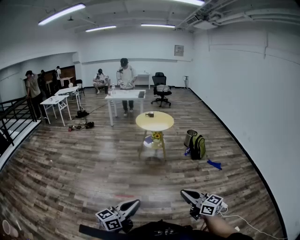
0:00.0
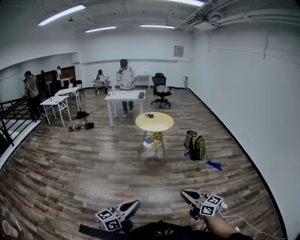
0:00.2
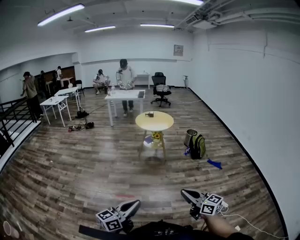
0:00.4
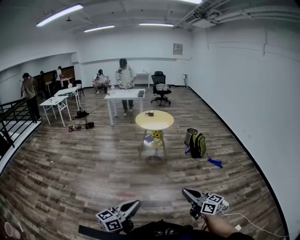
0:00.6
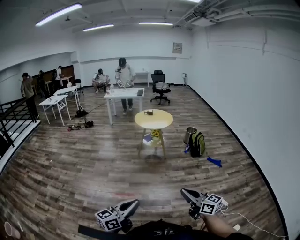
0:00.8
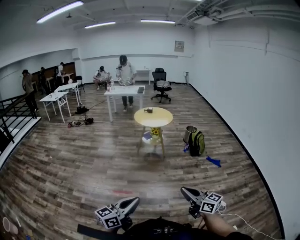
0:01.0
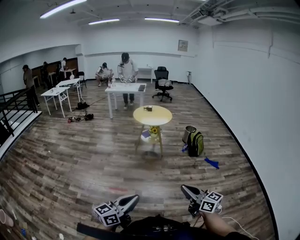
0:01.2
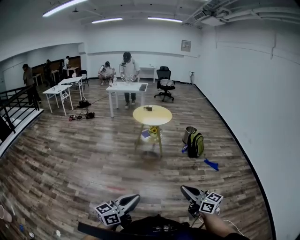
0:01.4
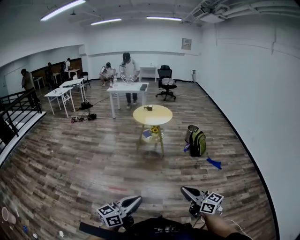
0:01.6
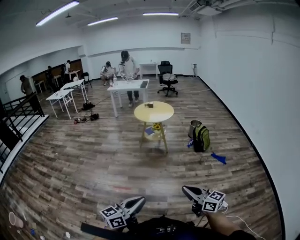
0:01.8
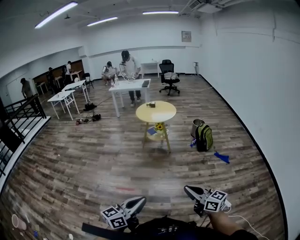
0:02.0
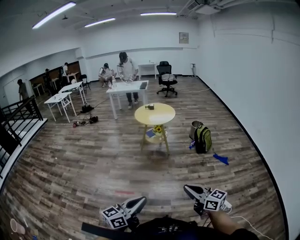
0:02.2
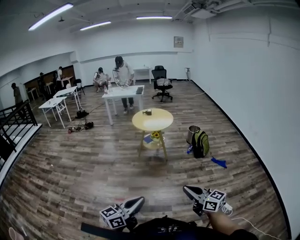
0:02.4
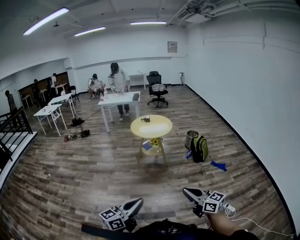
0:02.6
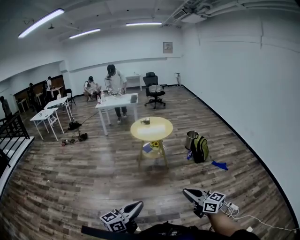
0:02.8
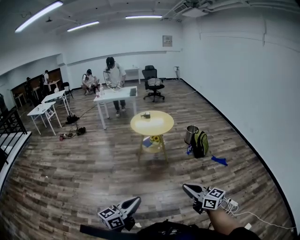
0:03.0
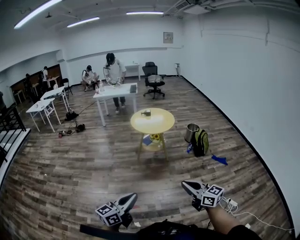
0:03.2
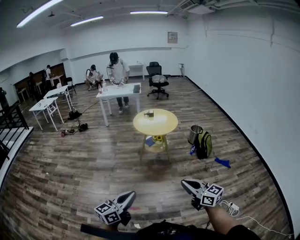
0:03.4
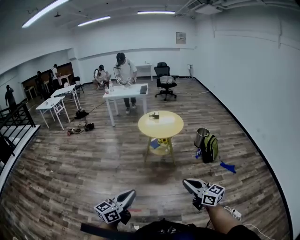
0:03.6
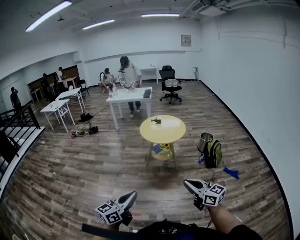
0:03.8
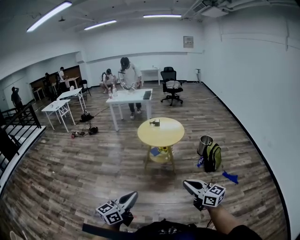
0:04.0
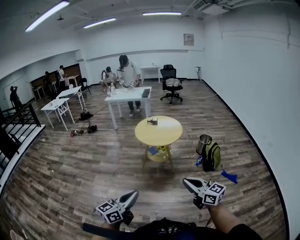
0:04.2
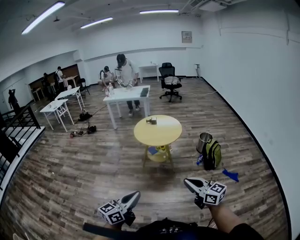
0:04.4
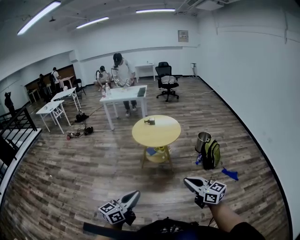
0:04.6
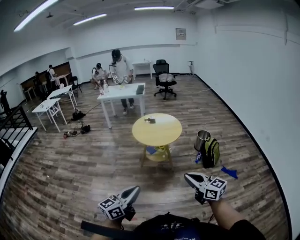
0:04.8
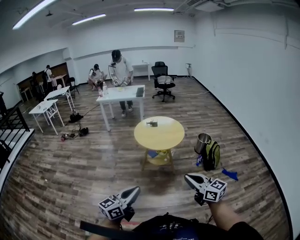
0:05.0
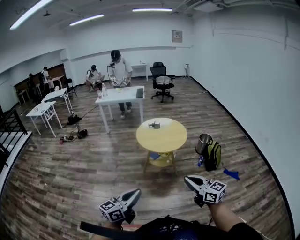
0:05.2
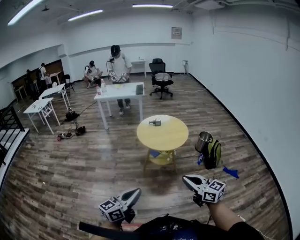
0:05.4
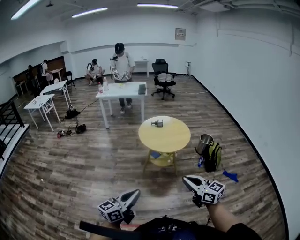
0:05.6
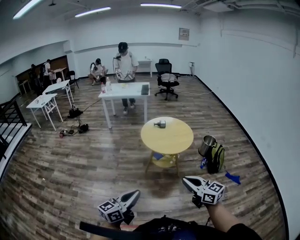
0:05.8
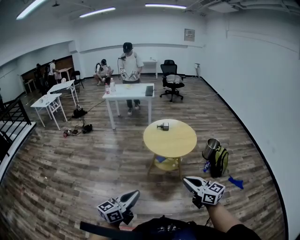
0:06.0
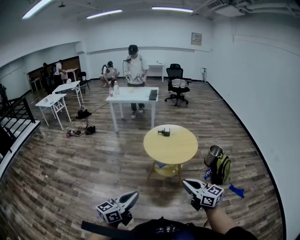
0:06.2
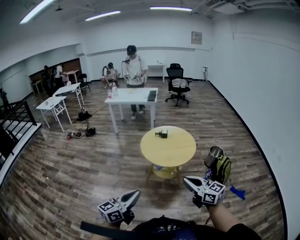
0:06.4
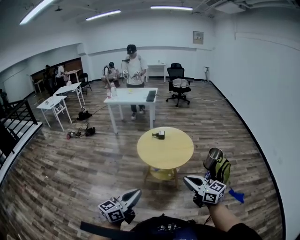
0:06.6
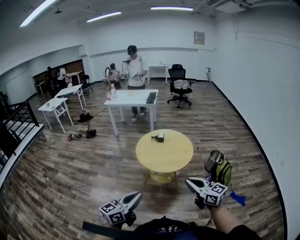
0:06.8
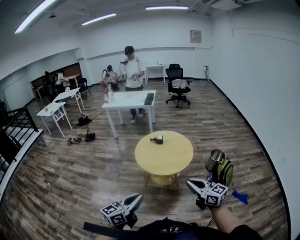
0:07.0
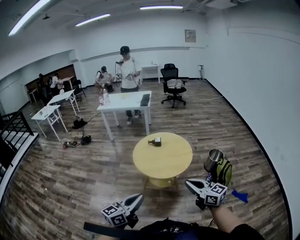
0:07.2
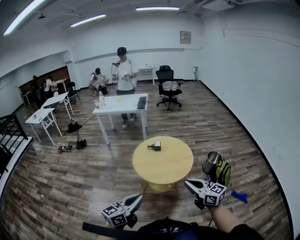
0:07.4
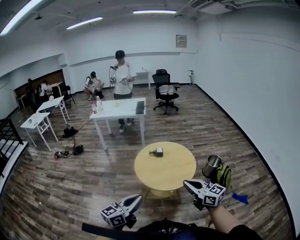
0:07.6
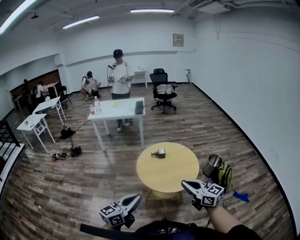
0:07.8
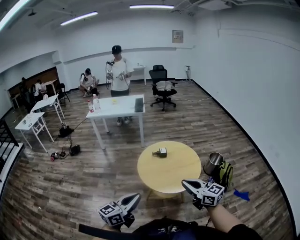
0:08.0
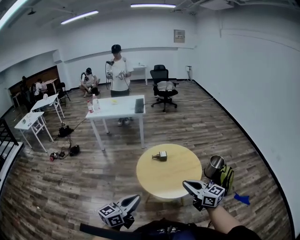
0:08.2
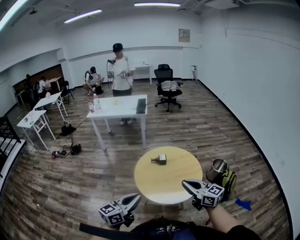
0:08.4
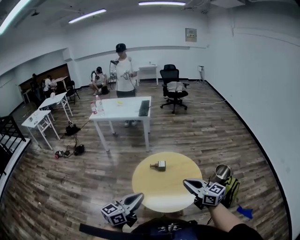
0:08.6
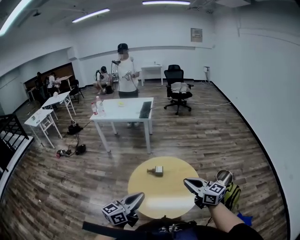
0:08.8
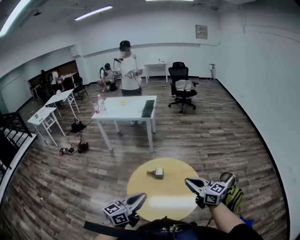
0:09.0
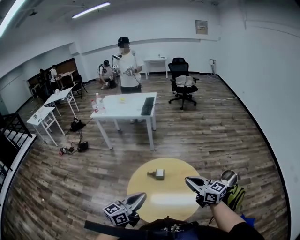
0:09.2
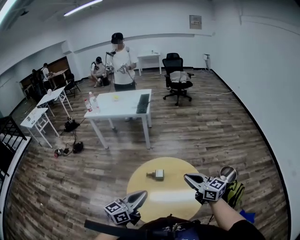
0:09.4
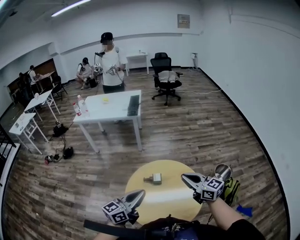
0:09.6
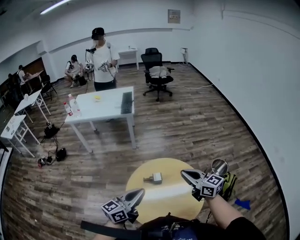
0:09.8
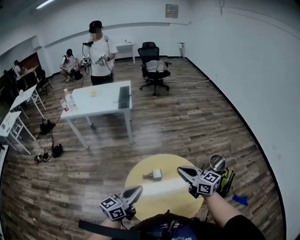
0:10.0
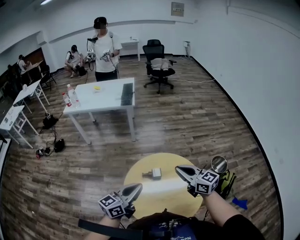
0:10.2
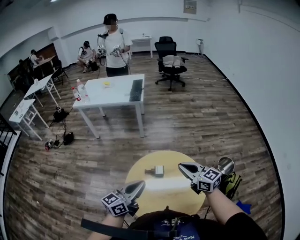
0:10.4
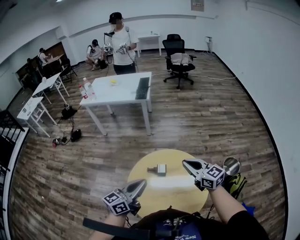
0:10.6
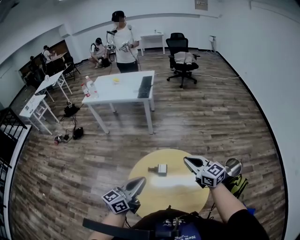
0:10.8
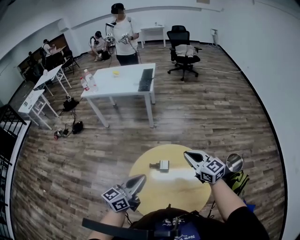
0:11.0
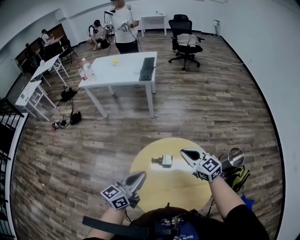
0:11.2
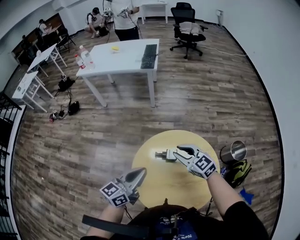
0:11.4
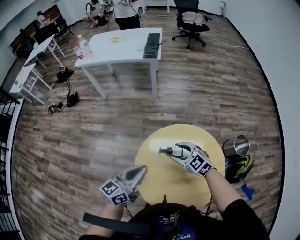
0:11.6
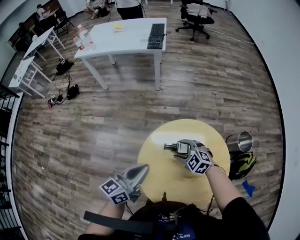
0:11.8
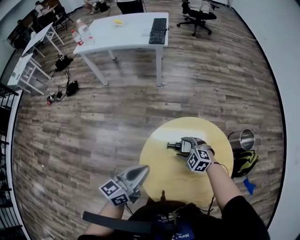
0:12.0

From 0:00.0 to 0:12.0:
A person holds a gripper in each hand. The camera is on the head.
From 0:00.0 to 0:01.6: Both grippers travel together to the right, approximately 20 cm.
From 0:01.6 to 0:03.0: The grippers both shift forward and to the left by some 40 cm.
From 0:03.0 to 0:04.4: Both grippers travel together forward and to the right, about 35 cm.
From 0:04.4 to 0:06.0: Both grippers travel together forward and to the left, about 40 cm.
From 0:06.0 to 0:07.6: The two grippers go roughly 35 cm forward.
From 0:07.6 to 0:09.0: The pair of grippers is taken forward, some 50 cm.
From 0:09.0 to 0:10.4: The right gripper is displaced forward and to the left by roughly 25 cm, while the left gripper goes about 20 cm forward.
From 0:10.4 to 0:12.0: The right gripper travels downward, forward and to the left by about 40 cm, angles its fingers downward, by about 50 degrees, and opens up. The left gripper is displaced downward, forward and to the left by approximately 25 cm.

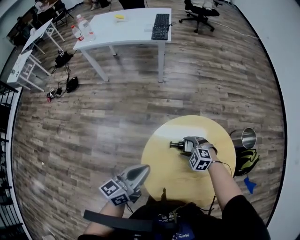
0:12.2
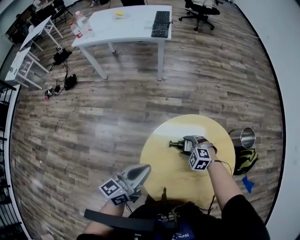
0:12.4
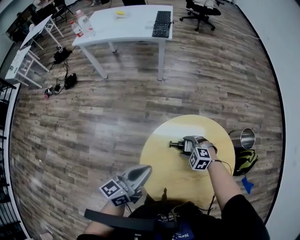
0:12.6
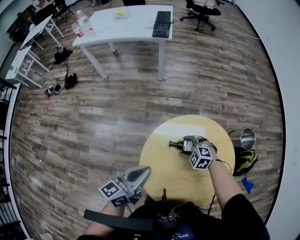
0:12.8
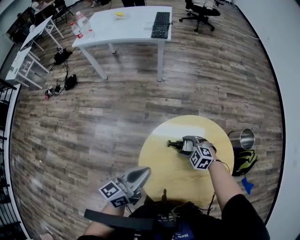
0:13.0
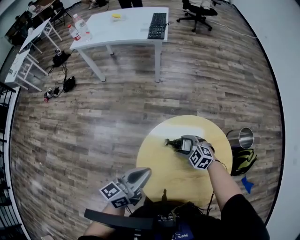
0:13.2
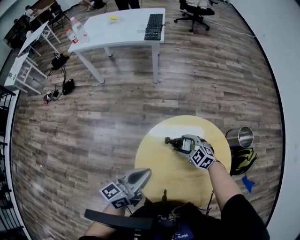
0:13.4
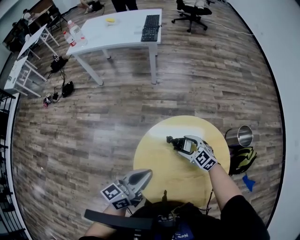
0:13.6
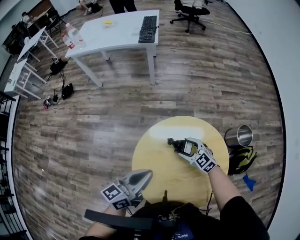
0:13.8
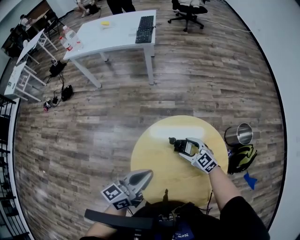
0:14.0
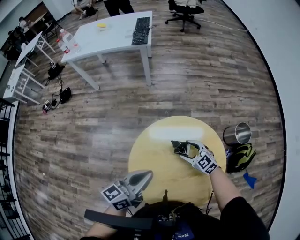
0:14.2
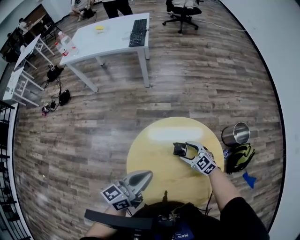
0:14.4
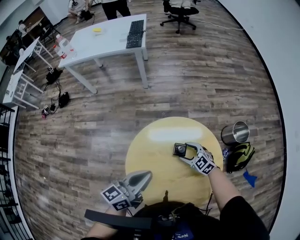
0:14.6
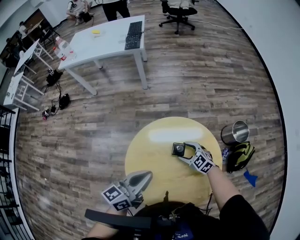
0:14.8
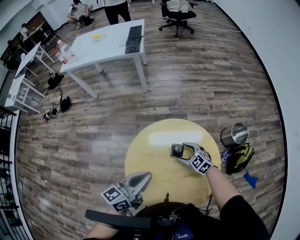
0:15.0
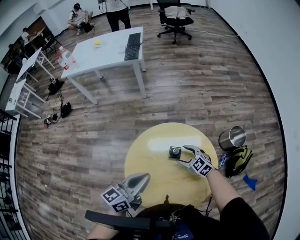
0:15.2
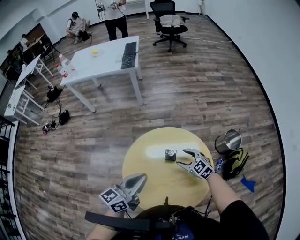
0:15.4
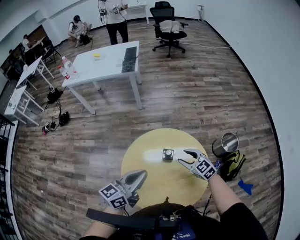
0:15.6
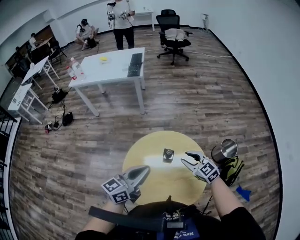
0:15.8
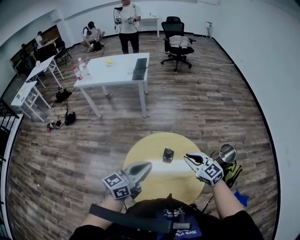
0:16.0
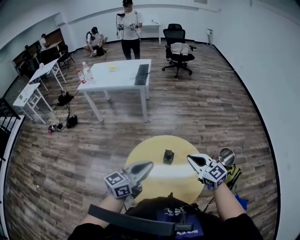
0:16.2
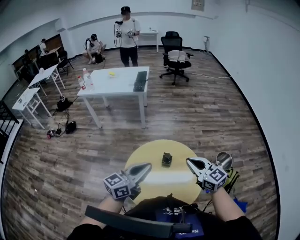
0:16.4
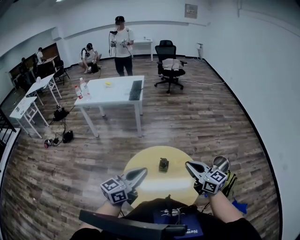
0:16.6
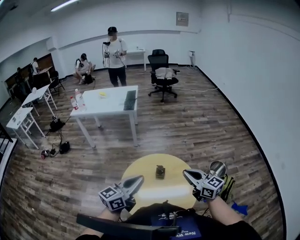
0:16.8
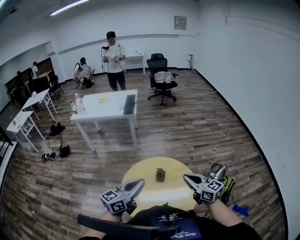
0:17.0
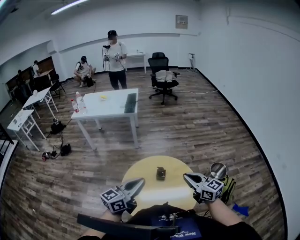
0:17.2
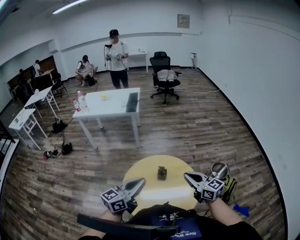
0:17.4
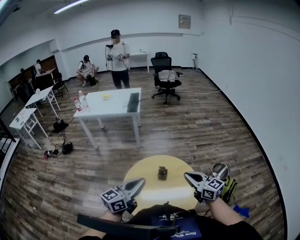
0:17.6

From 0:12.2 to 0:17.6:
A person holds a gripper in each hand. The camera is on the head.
From 0:12.2 to 0:13.6: The left gripper is displaced to the right by approximately 5 cm, while the right gripper ends up roughly 5 cm from where it was, and rotates about 30 degrees.
From 0:13.6 to 0:15.0: The grippers both shift to the right by approximately 10 cm.
From 0:15.0 to 0:16.2: The right gripper goes about 40 cm upward and backward, changes its angle by approximately 30 degrees, and closes its fingers. The left gripper shifts roughly 20 cm upward and backward.
From 0:16.2 to 0:17.6: Both grippers move backward, roughly 10 cm.

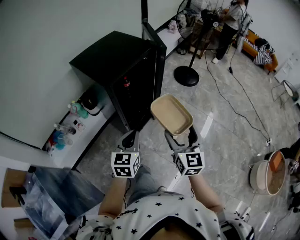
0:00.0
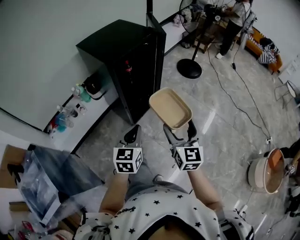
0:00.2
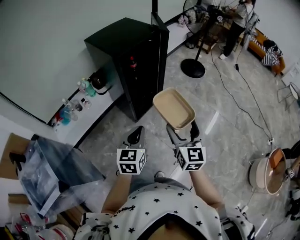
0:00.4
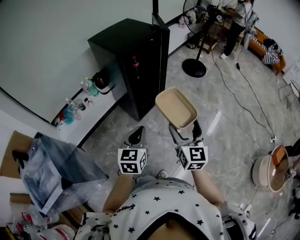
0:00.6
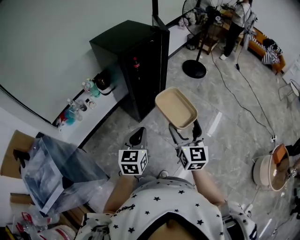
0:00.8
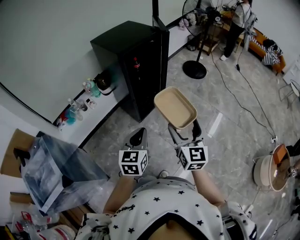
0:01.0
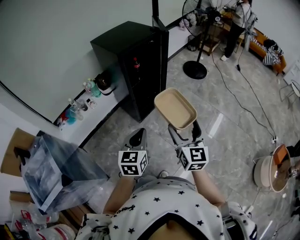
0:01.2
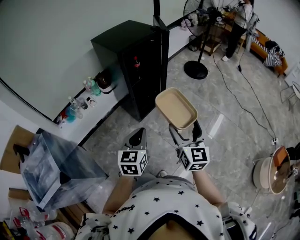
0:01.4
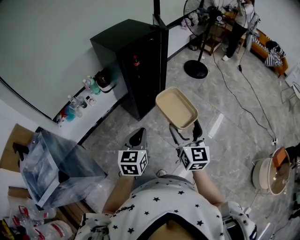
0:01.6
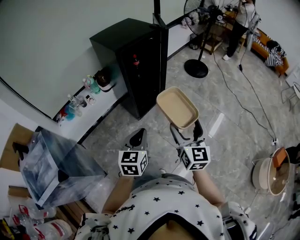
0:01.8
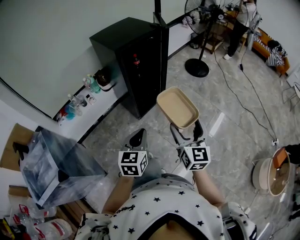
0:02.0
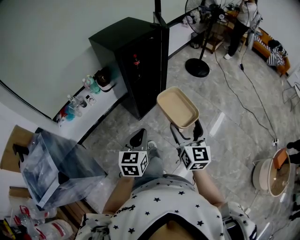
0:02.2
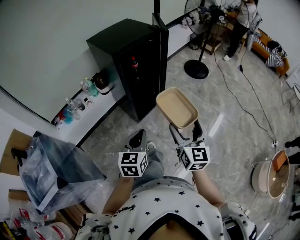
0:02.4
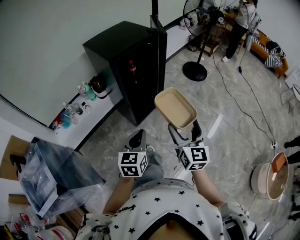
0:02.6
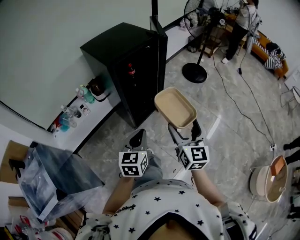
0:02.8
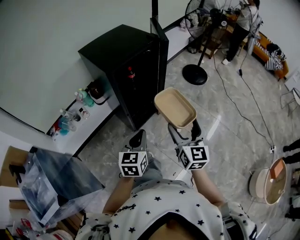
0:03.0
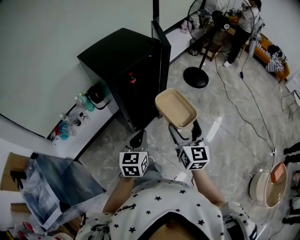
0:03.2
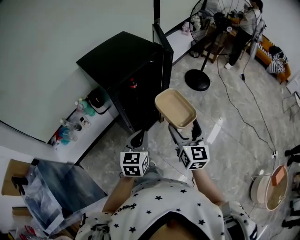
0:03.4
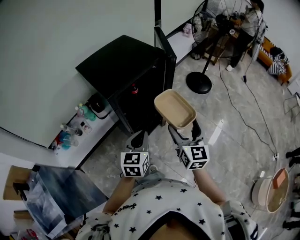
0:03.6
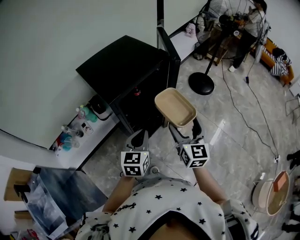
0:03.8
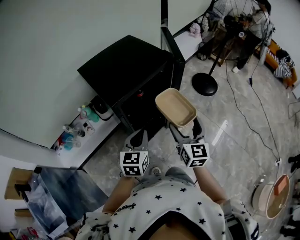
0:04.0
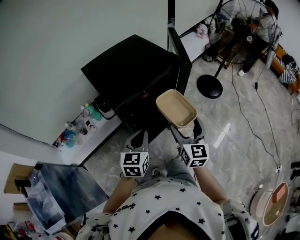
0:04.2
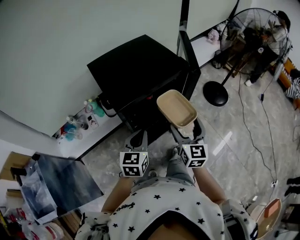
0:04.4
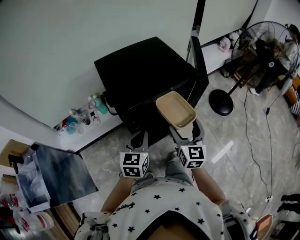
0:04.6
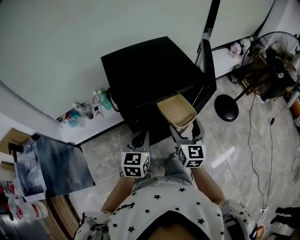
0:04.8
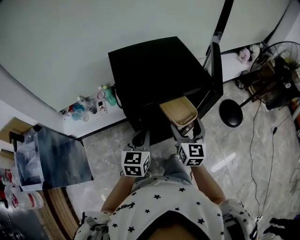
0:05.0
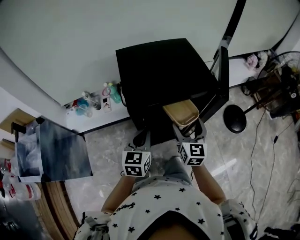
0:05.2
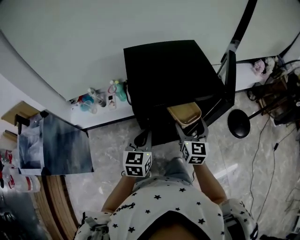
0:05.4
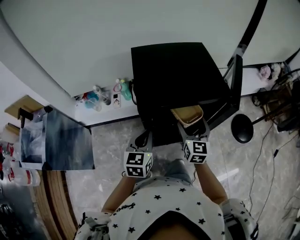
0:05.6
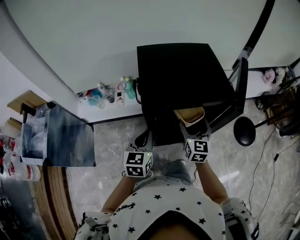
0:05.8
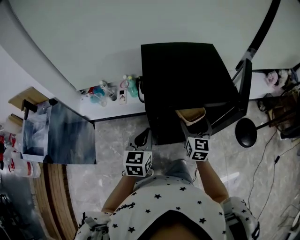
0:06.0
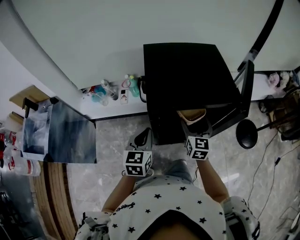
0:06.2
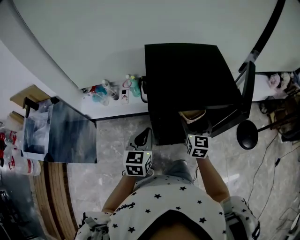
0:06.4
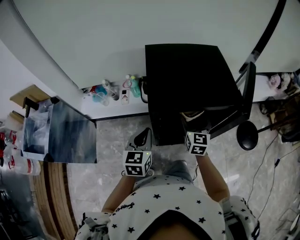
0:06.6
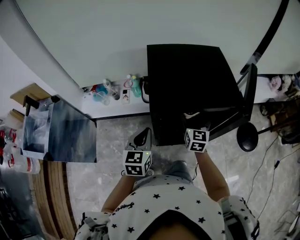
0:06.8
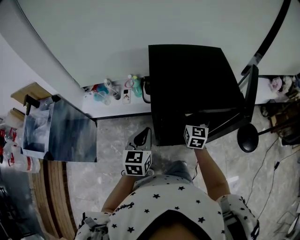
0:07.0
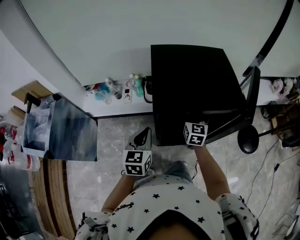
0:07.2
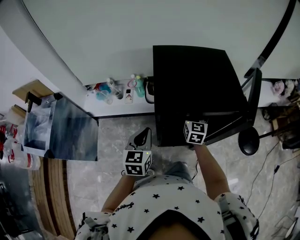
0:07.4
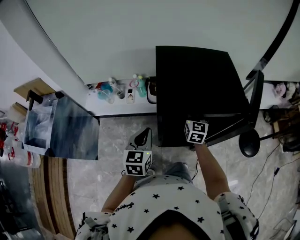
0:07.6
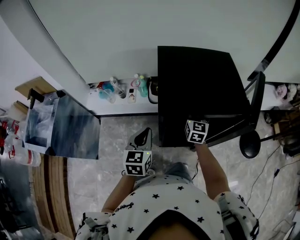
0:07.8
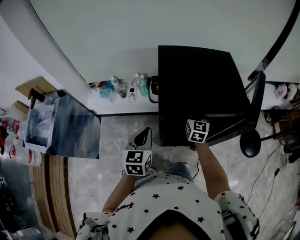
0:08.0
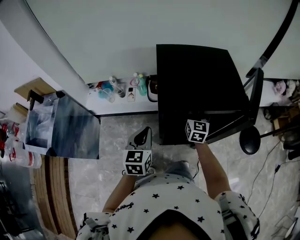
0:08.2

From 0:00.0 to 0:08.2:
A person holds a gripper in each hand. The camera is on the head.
From 0:00.0 to 0:01.6: The grippers both shift backward by approximately 20 cm.
From 0:01.6 to 0:03.2: Both grippers move forward, about 20 cm.
From 0:03.2 to 0:05.0: The two grippers go some 25 cm forward. The right gripper changes its angle by roughly 30 degrees. The left gripper swivels roughly 30 degrees.
From 0:05.0 to 0:06.6: The left gripper goes roughly 10 cm to the left; the right gripper heads forward, to the left and downward, covering roughly 10 cm.
From 0:06.6 to 0:08.2: The right gripper heads forward, covering some 5 cm.
